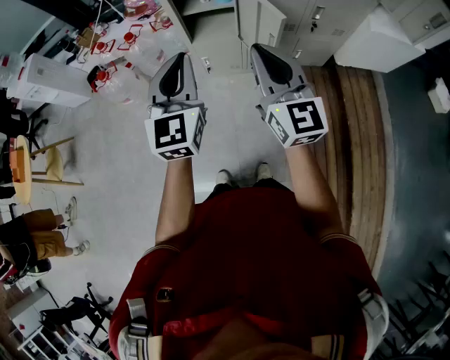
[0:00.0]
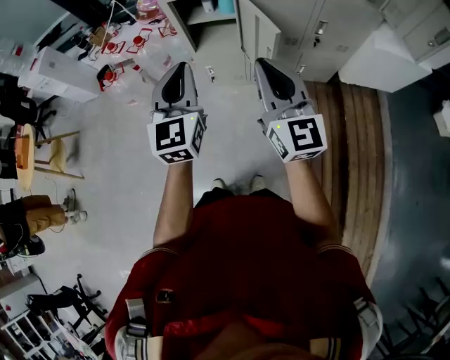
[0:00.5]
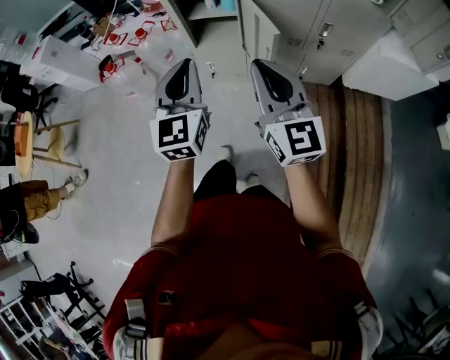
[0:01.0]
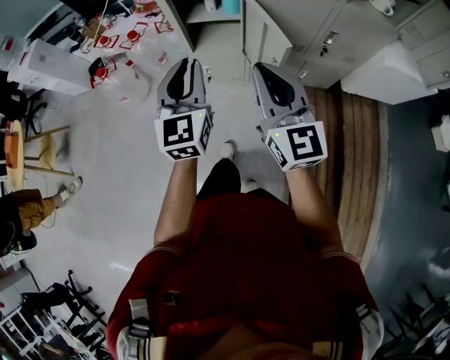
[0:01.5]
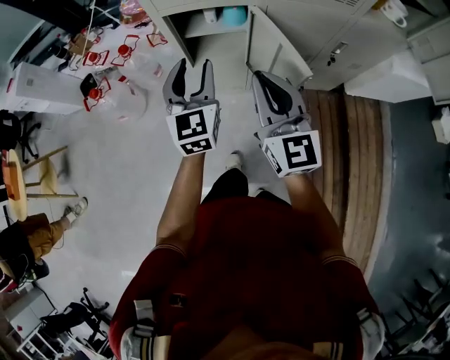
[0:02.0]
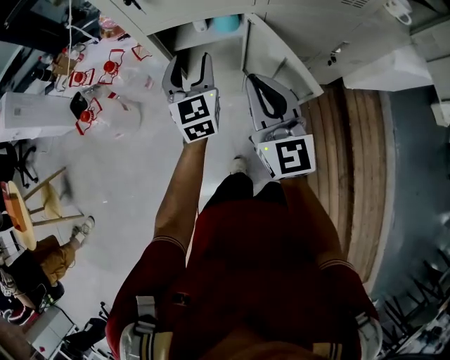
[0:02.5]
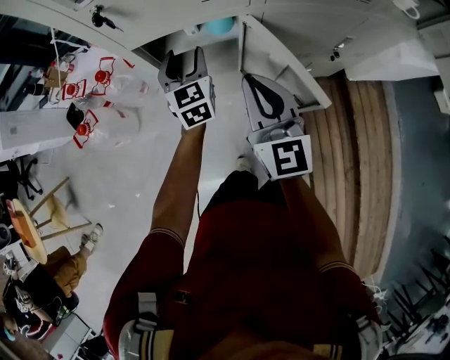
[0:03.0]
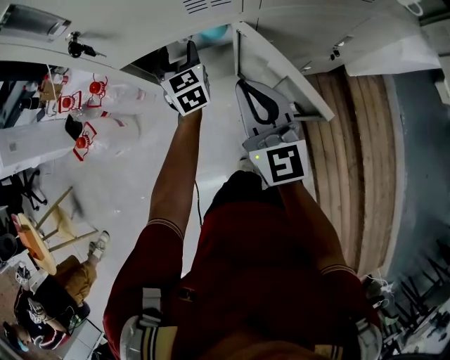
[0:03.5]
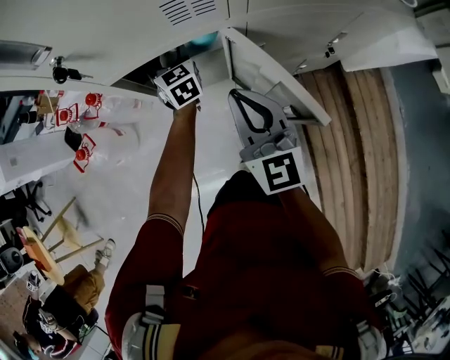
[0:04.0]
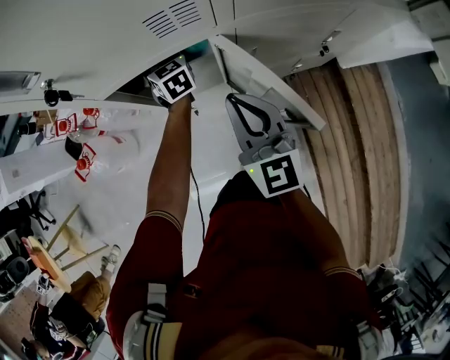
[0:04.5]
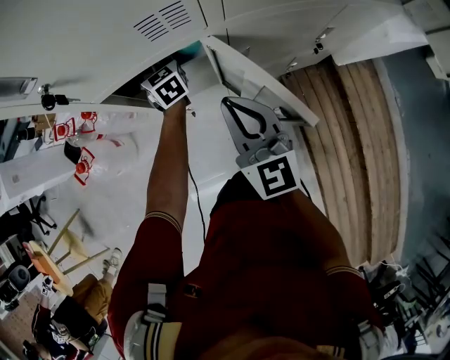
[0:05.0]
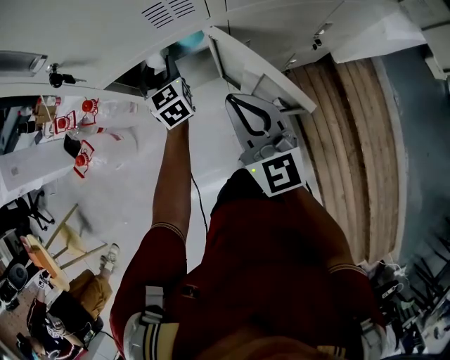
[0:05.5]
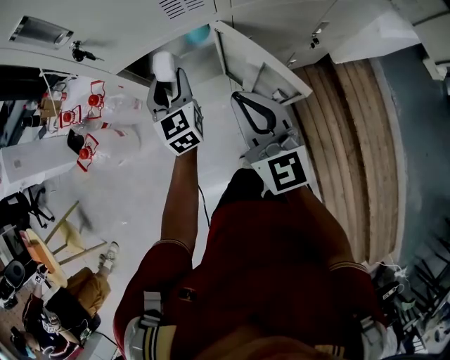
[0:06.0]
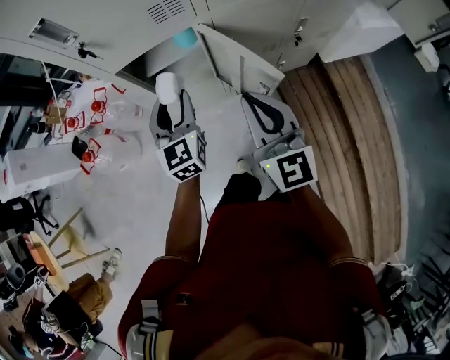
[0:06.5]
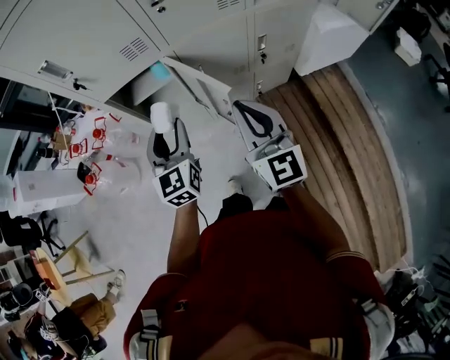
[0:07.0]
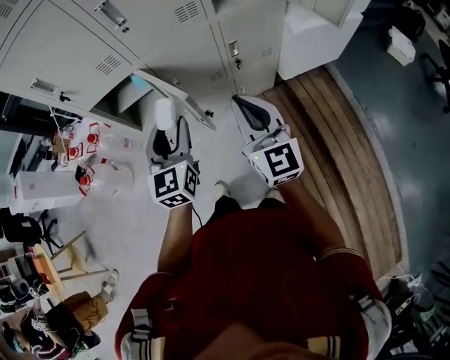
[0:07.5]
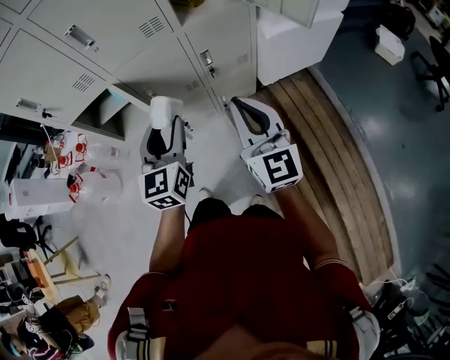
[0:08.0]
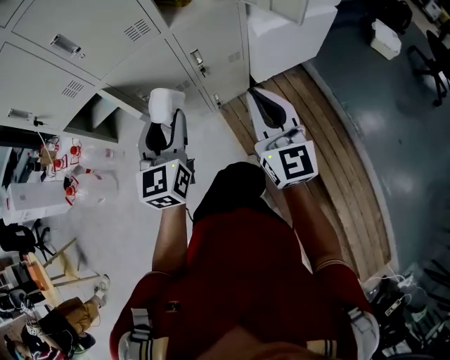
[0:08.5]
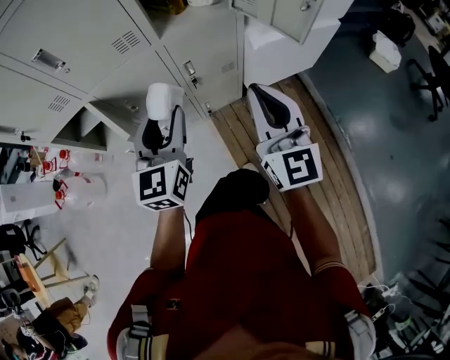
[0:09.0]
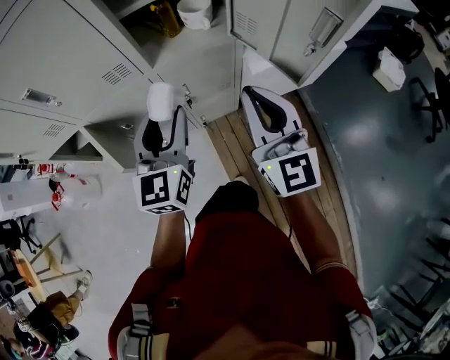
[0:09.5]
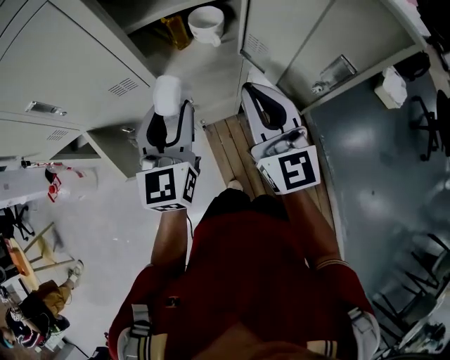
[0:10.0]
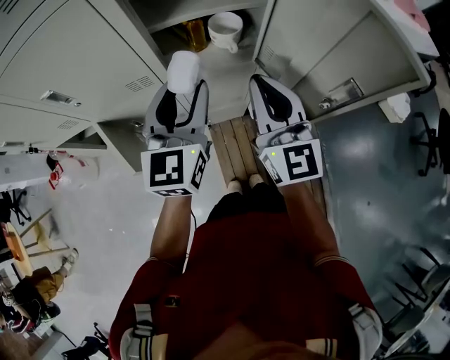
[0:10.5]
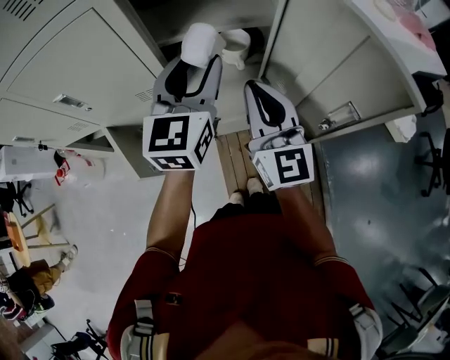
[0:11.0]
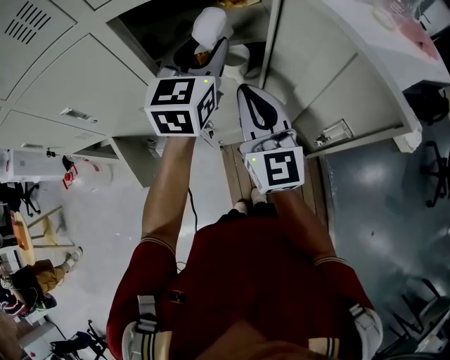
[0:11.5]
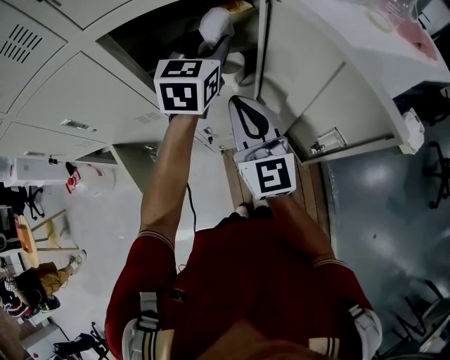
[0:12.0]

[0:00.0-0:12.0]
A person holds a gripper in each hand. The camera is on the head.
0:00.0 to 0:02.0: The right gripper travels forward by about 15 cm. The left gripper shifts roughly 25 cm forward and downward, and opens.
0:02.0 to 0:04.0: The left gripper shifts about 35 cm forward and downward, while the right gripper heads forward and downward, covering approximately 20 cm.
0:04.0 to 0:06.0: The right gripper is displaced backward by approximately 5 cm, while the left gripper heads backward and upward, covering approximately 15 cm.
0:06.0 to 0:08.0: The pair of grippers is taken to the right and backward, about 40 cm. The left gripper goes about 15 cm upward.
0:08.0 to 0:10.0: The right gripper travels forward and to the right by some 30 cm. Meanwhile the left gripper heads forward, to the right and upward, covering roughly 30 cm.
0:10.0 to 0:12.0: The right gripper goes approximately 10 cm forward, while the left gripper goes roughly 25 cm forward, upward and to the right.

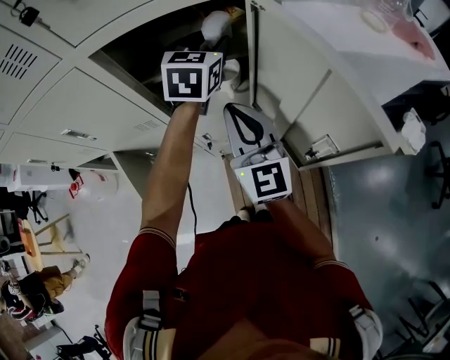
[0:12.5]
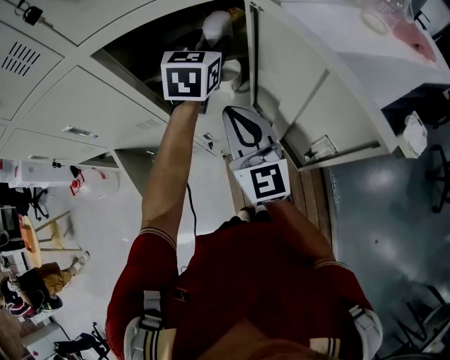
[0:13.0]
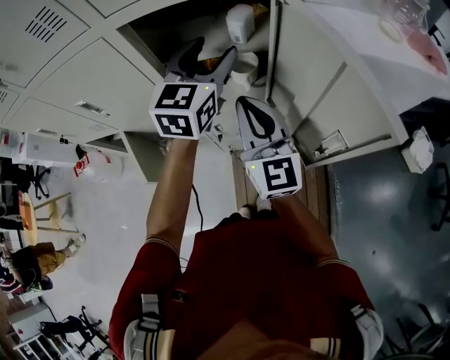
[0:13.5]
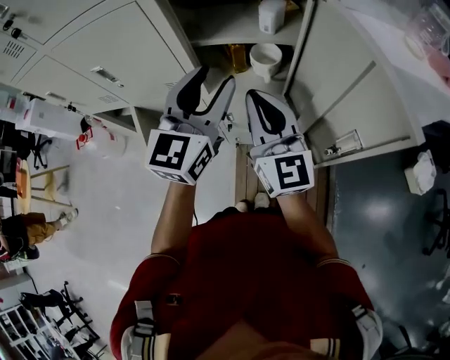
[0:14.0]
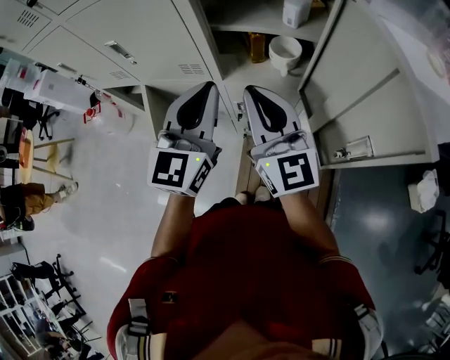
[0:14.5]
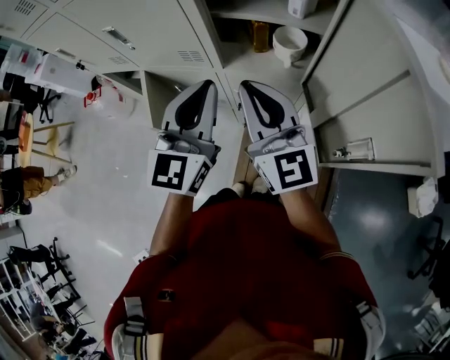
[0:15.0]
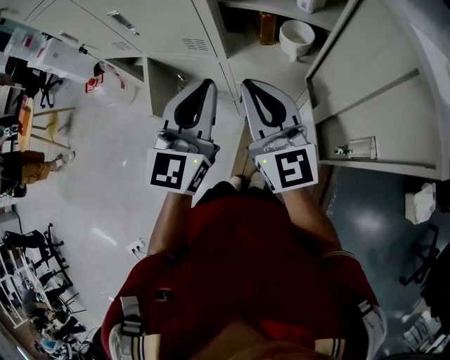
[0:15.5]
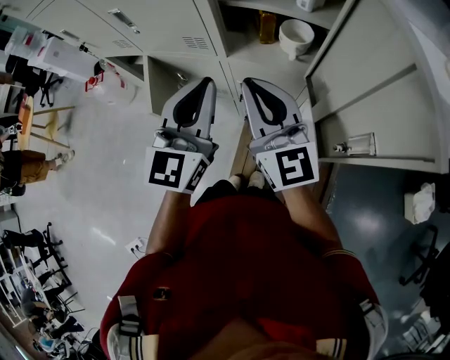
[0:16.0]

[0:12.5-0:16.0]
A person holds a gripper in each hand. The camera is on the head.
0:12.5 to 0:14.5: The left gripper shifts about 25 cm backward and to the left, turns by approximately 30 degrees, and closes its fingers. The right gripper goes approximately 10 cm to the left and backward, and rotates roughly 20 degrees.
0:14.5 to 0:16.0: The grippers stay close to where they were, moving slightly.

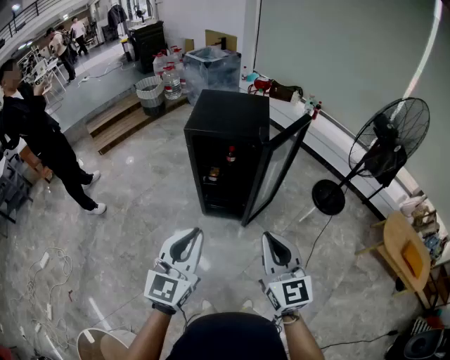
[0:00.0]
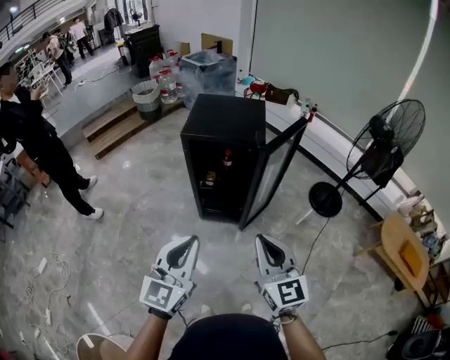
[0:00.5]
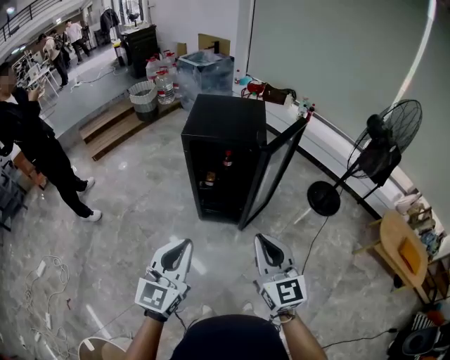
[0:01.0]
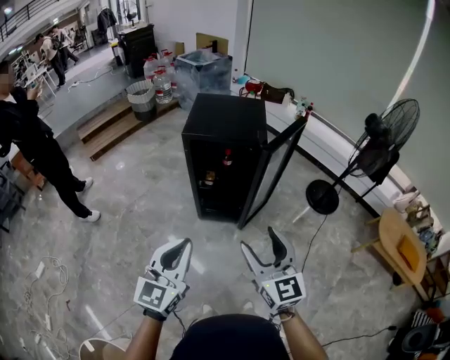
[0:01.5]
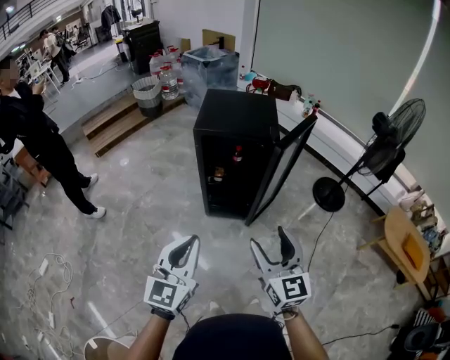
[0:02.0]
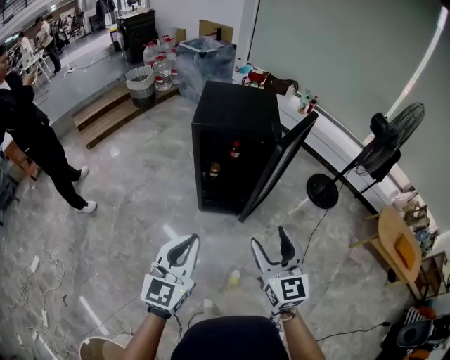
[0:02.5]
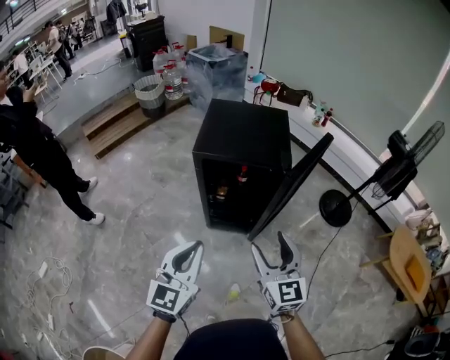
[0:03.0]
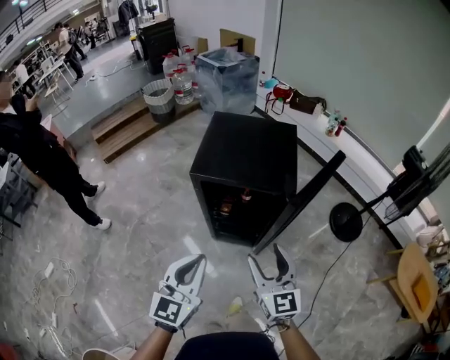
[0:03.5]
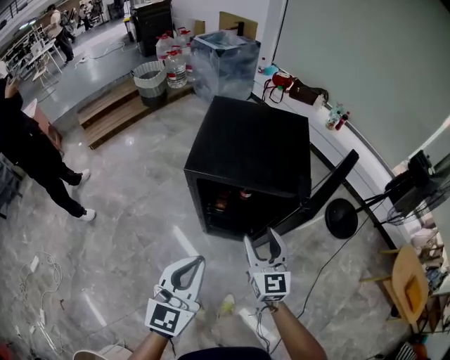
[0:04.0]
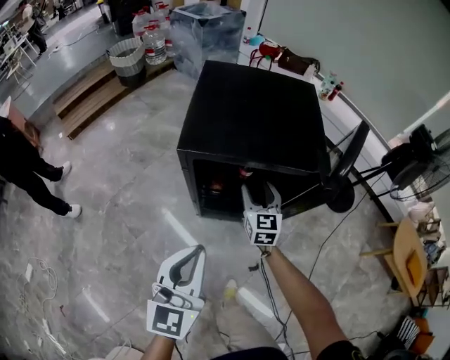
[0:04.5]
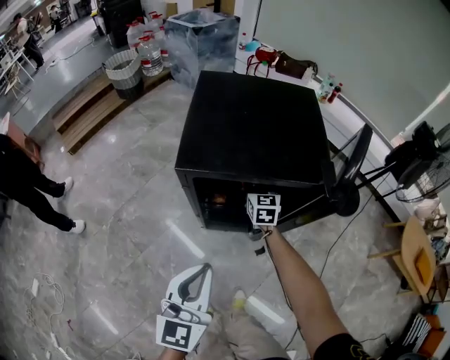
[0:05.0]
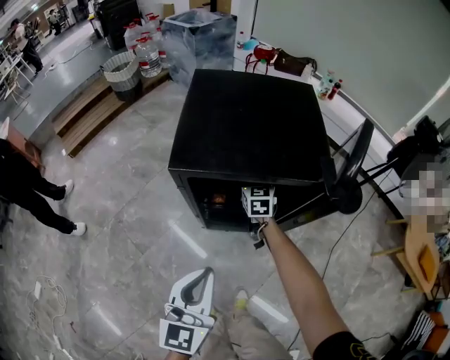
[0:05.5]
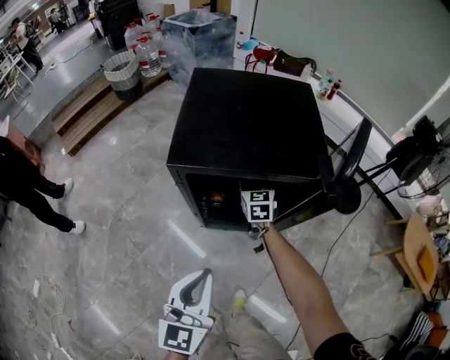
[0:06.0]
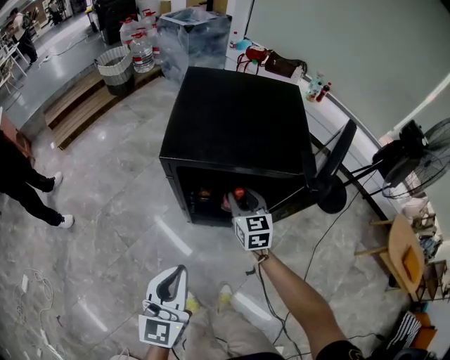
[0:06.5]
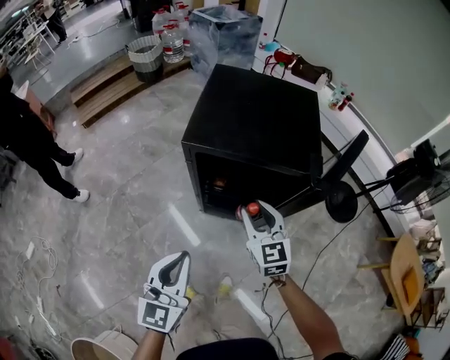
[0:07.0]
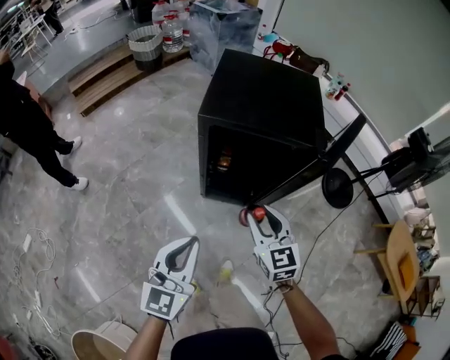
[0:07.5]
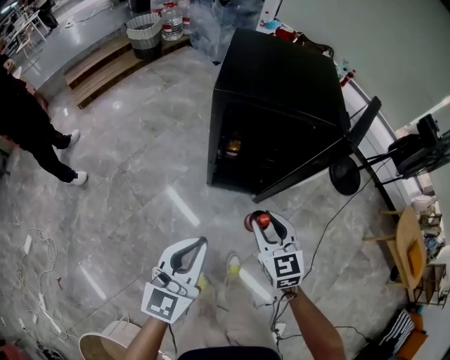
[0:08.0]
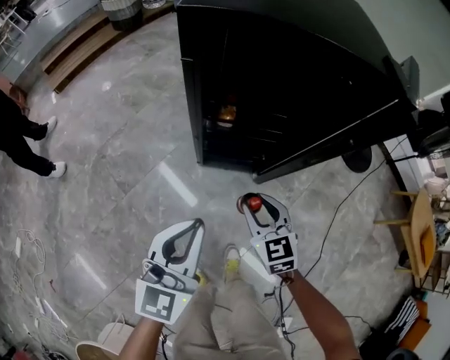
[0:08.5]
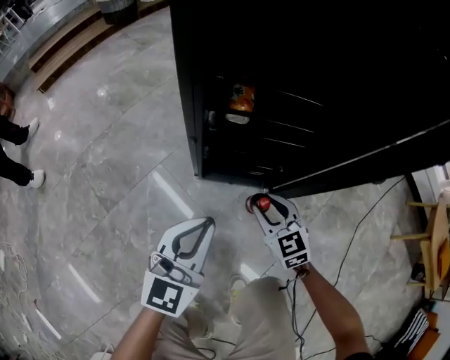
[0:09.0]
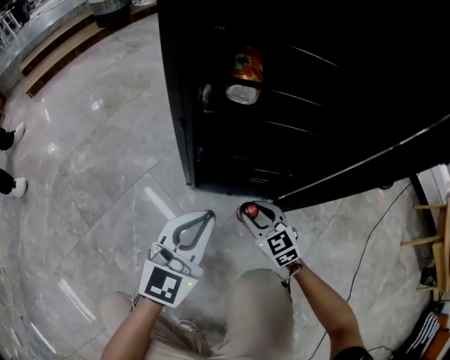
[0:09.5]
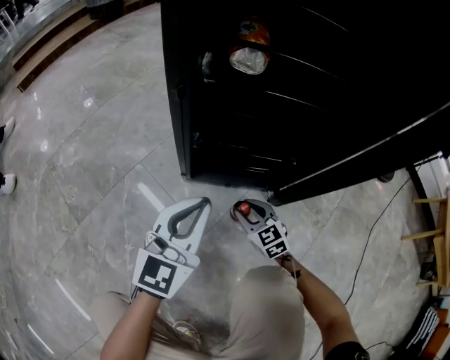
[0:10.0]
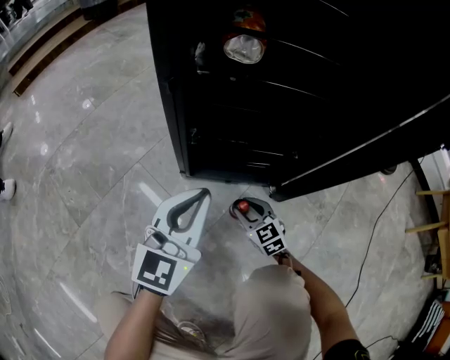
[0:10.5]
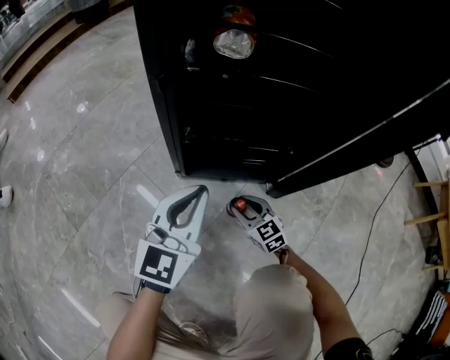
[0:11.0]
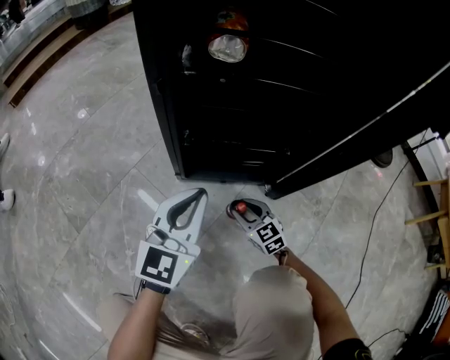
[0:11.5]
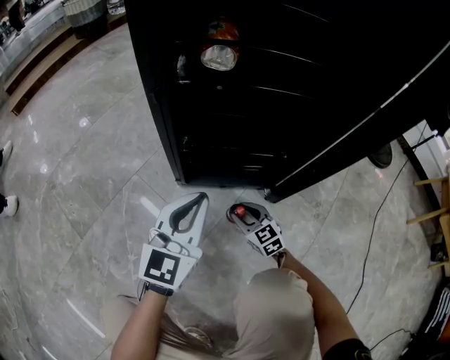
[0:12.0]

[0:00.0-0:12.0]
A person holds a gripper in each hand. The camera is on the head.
0:00.0 to 0:02.0: The grippers both shift to the left by approximately 10 cm. The right gripper opens.
0:02.0 to 0:04.0: The left gripper travels forward by some 30 cm. Meanwhile the right gripper moves forward and downward, approximately 40 cm.
0:04.0 to 0:06.0: The left gripper heads downward, covering roughly 10 cm. The right gripper goes some 30 cm forward and downward, rotates approximately 20 degrees, and closes its fingers.
0:06.0 to 0:08.0: The left gripper is displaced backward and to the left by some 15 cm. The right gripper goes approximately 35 cm backward.
0:08.0 to 0:10.0: The two grippers go about 70 cm downward.
0:10.0 to 0:12.0: The grippers stay close to where they were, moving slightly.
